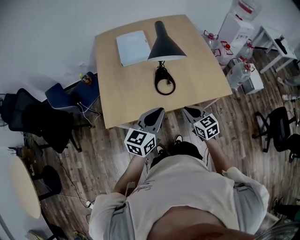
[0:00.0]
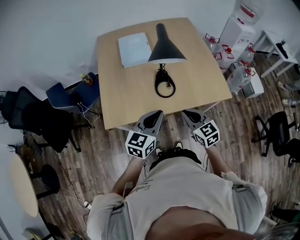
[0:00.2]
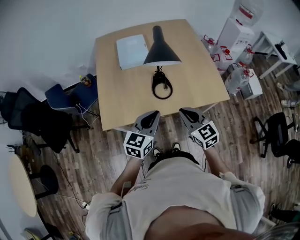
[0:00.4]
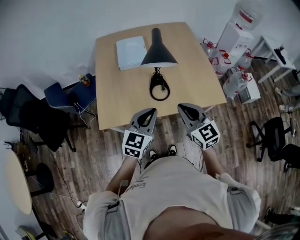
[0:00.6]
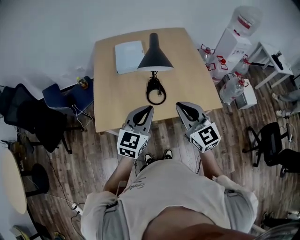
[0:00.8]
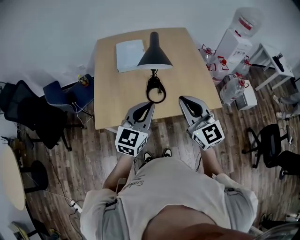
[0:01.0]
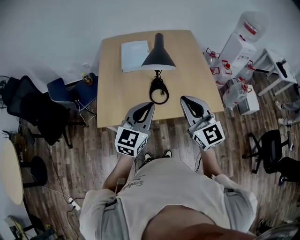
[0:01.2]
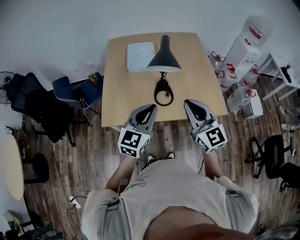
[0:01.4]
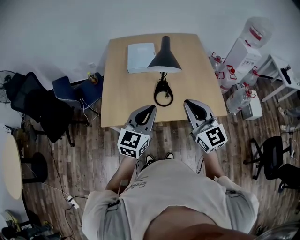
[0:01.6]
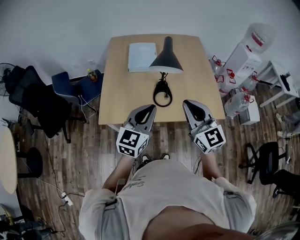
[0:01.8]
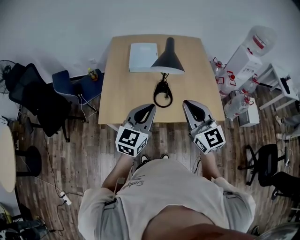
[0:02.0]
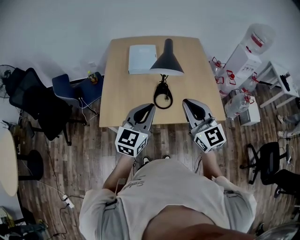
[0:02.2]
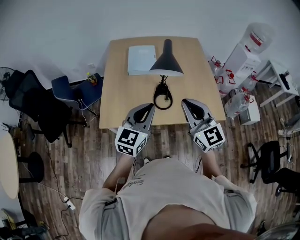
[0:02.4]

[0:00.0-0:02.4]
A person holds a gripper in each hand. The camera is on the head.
0:00.0 to 0:01.2: The right gripper goes approximately 25 cm upward, and points its fingers roughly 30 degrees further upward, while the left gripper shifts about 10 cm upward, and changes its angle by roughly 20 degrees.
0:01.2 to 0:02.4: There are only small adjustments of the grippers.

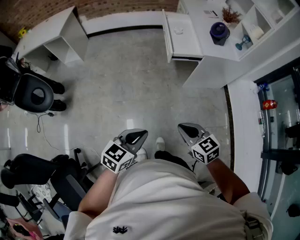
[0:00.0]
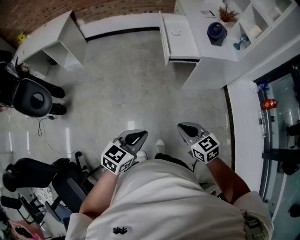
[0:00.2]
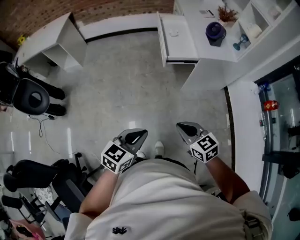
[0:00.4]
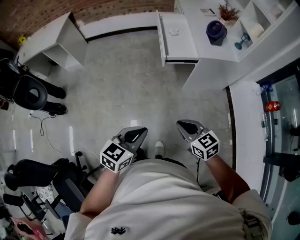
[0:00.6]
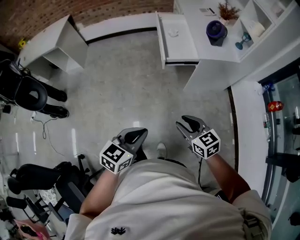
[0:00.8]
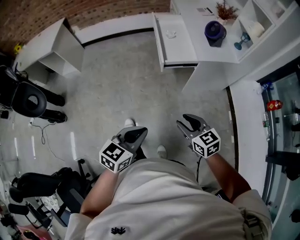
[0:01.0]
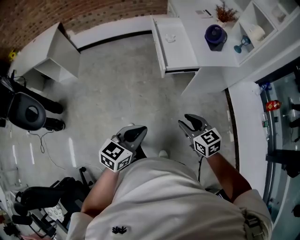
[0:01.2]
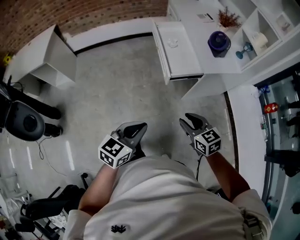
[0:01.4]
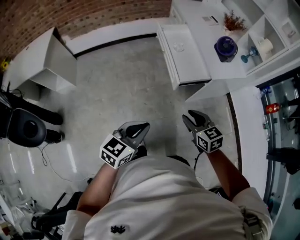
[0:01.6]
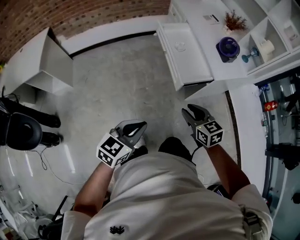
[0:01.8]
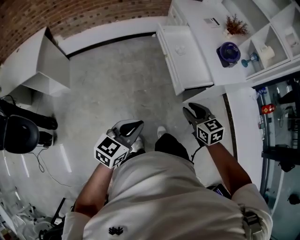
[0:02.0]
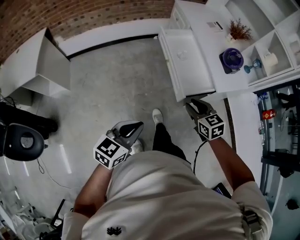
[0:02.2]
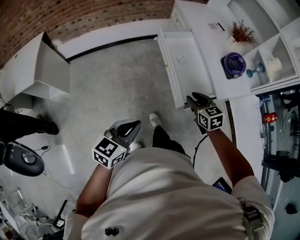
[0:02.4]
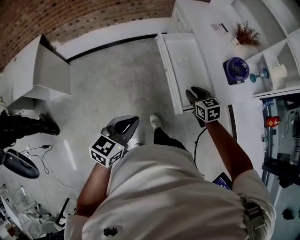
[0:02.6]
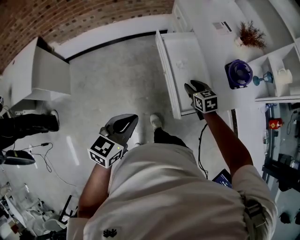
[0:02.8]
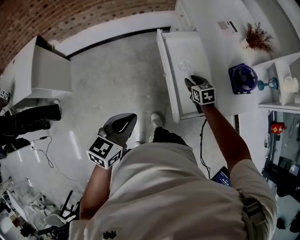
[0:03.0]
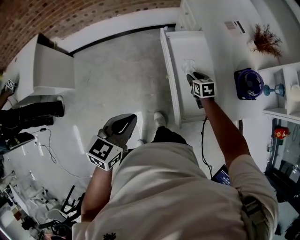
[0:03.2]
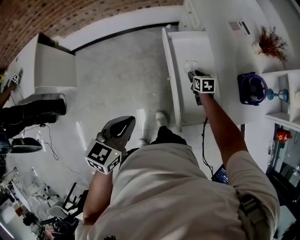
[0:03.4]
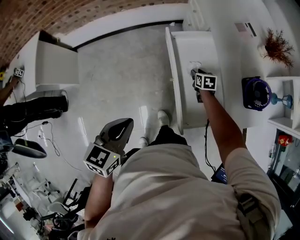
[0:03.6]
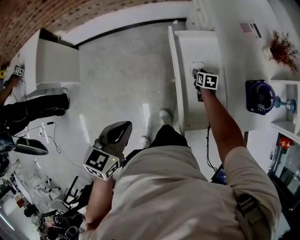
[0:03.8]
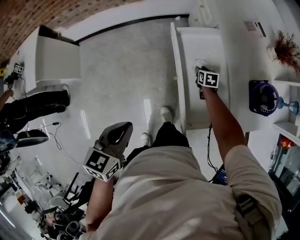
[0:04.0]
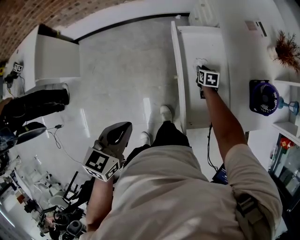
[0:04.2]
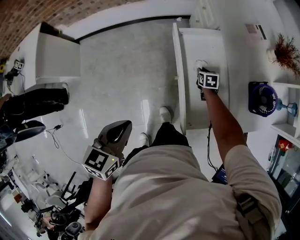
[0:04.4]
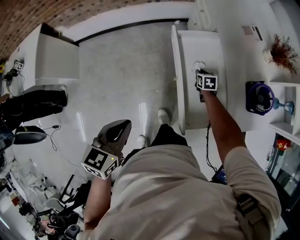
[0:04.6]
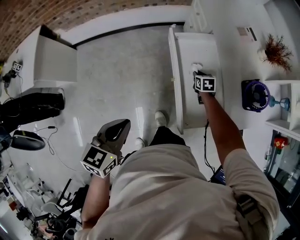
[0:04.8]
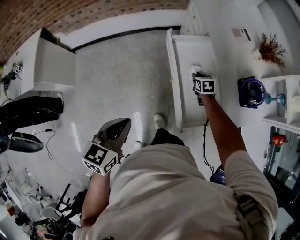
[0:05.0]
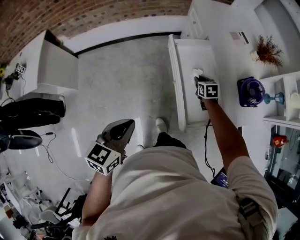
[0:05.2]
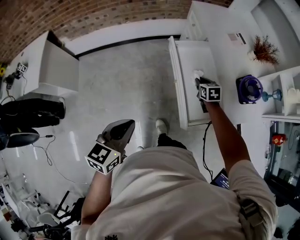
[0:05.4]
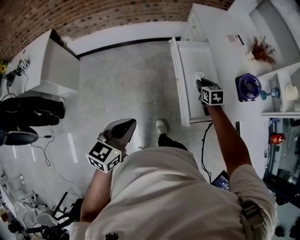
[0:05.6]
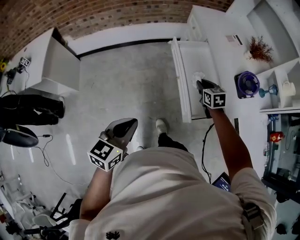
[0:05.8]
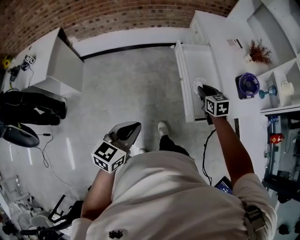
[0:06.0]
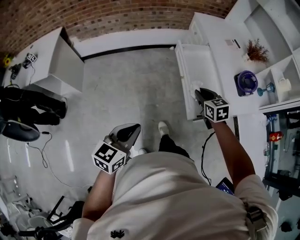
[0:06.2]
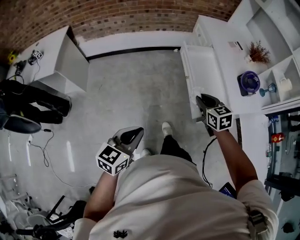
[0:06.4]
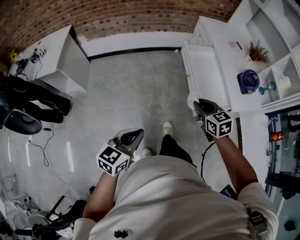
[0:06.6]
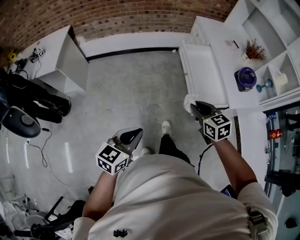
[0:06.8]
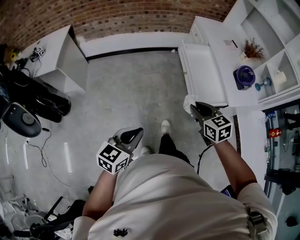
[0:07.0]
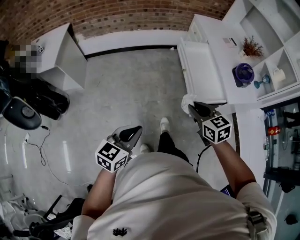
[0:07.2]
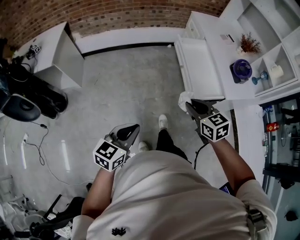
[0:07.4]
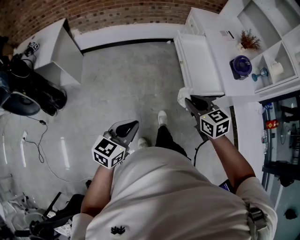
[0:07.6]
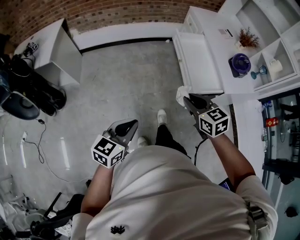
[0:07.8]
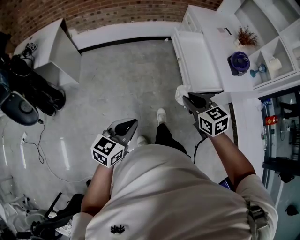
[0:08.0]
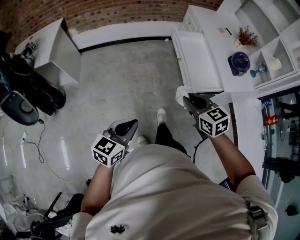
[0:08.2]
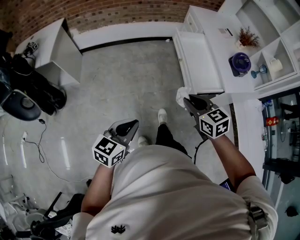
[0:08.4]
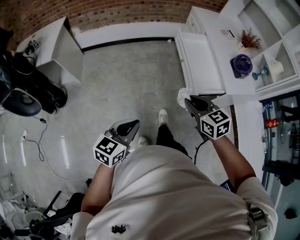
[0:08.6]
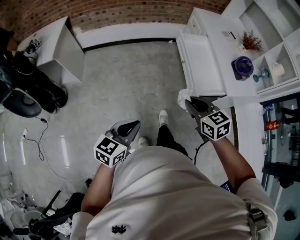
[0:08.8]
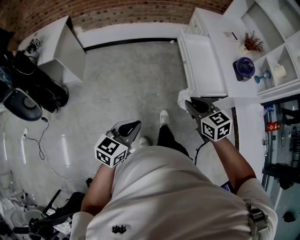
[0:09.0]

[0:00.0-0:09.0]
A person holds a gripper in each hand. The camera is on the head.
0:00.0 to 0:01.6: Both grippers move forward, approximately 30 cm. The right gripper opens up.
0:01.6 to 0:03.0: The two grippers go some 40 cm forward.
0:03.0 to 0:04.4: The right gripper moves downward and forward, roughly 20 cm; the left gripper ends up some 5 cm from where it was.
0:04.4 to 0:06.0: The right gripper shifts some 35 cm upward and backward, and rotates approximately 20 degrees, while the left gripper is displaced backward by about 20 cm.
0:06.0 to 0:07.6: The right gripper heads backward and to the left, covering about 30 cm. The left gripper is displaced backward by about 15 cm.
0:07.6 to 0:09.0: The grippers make only small movements.

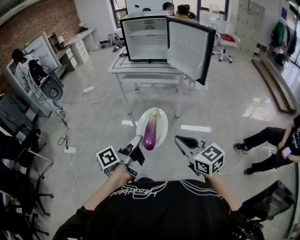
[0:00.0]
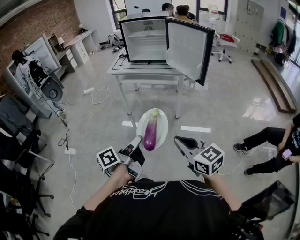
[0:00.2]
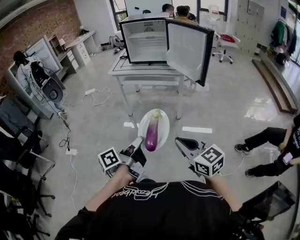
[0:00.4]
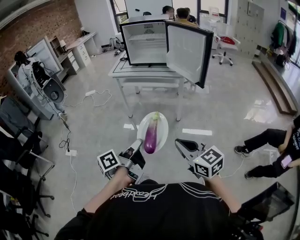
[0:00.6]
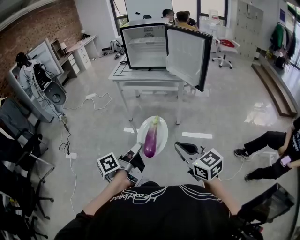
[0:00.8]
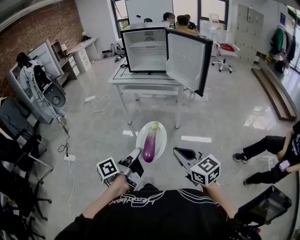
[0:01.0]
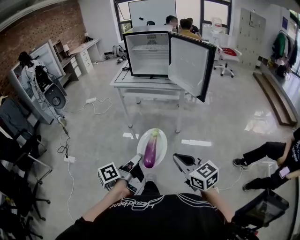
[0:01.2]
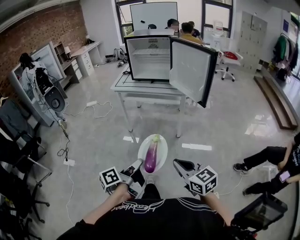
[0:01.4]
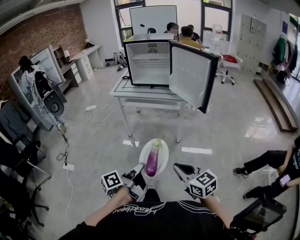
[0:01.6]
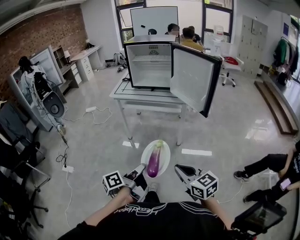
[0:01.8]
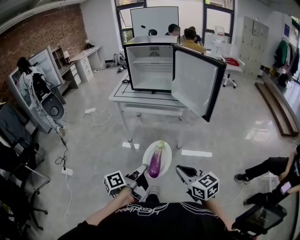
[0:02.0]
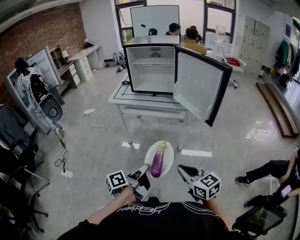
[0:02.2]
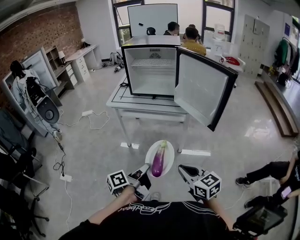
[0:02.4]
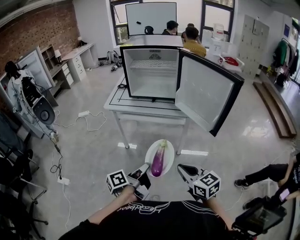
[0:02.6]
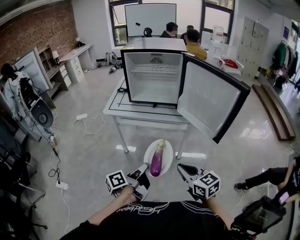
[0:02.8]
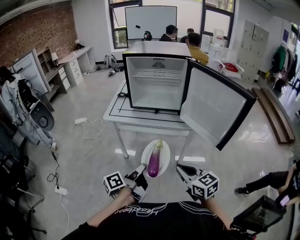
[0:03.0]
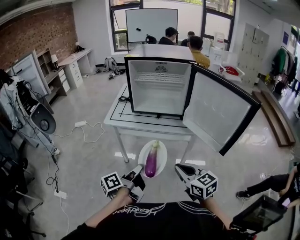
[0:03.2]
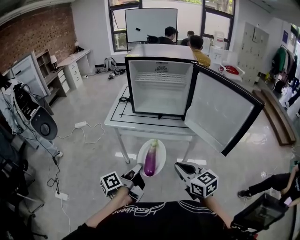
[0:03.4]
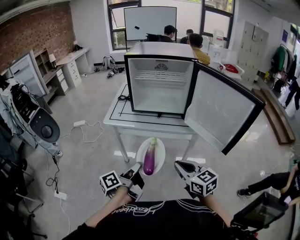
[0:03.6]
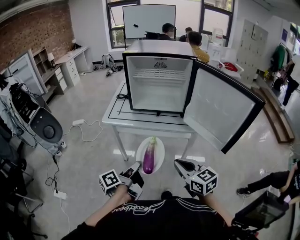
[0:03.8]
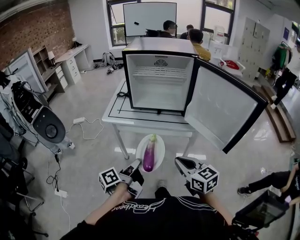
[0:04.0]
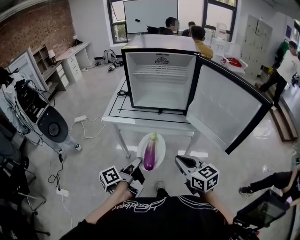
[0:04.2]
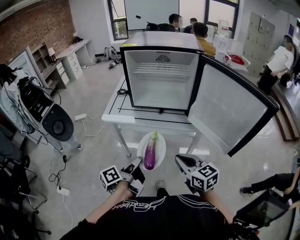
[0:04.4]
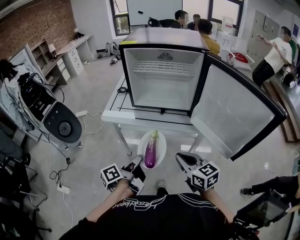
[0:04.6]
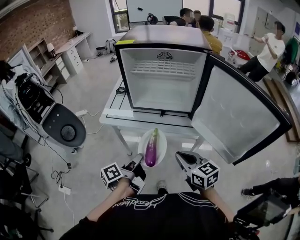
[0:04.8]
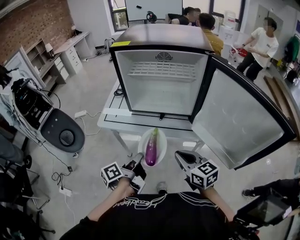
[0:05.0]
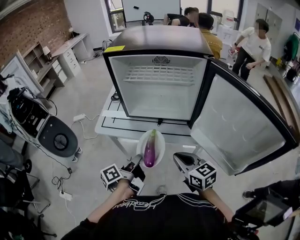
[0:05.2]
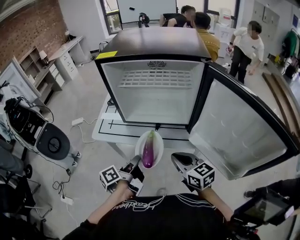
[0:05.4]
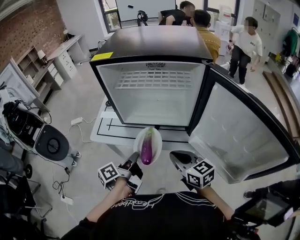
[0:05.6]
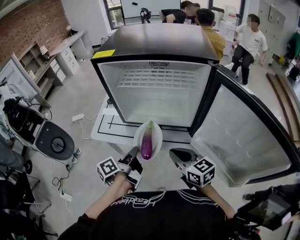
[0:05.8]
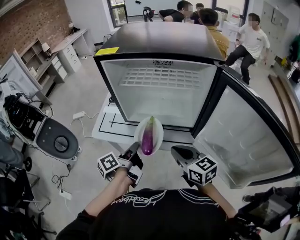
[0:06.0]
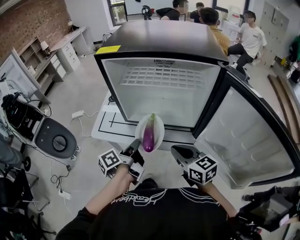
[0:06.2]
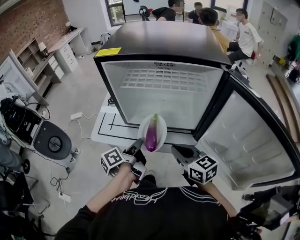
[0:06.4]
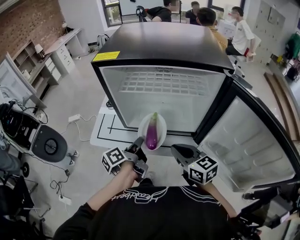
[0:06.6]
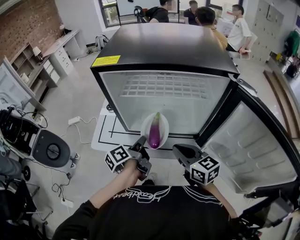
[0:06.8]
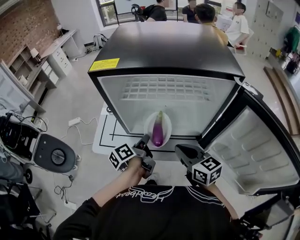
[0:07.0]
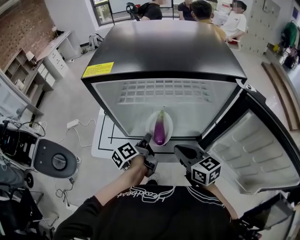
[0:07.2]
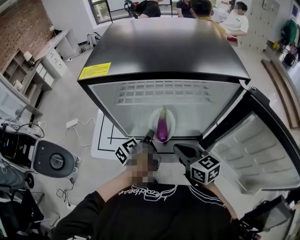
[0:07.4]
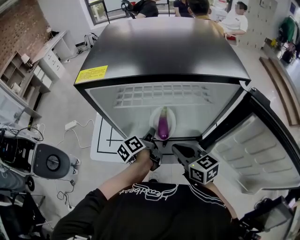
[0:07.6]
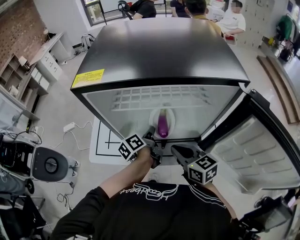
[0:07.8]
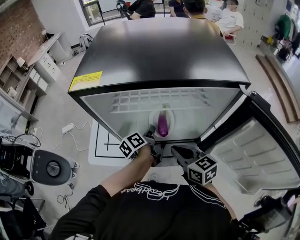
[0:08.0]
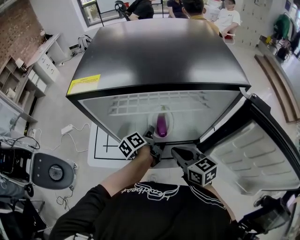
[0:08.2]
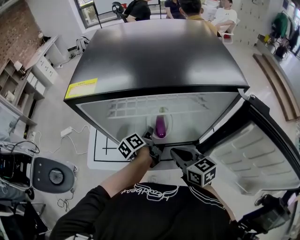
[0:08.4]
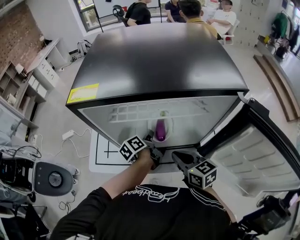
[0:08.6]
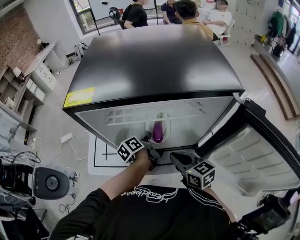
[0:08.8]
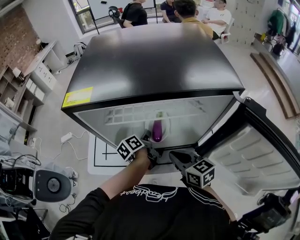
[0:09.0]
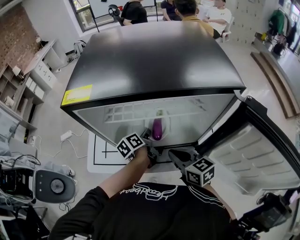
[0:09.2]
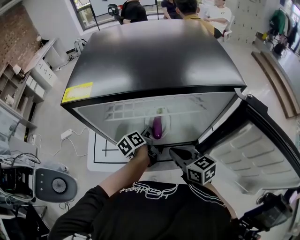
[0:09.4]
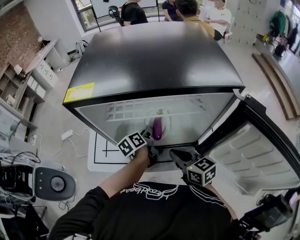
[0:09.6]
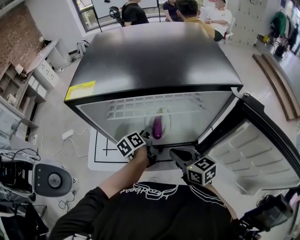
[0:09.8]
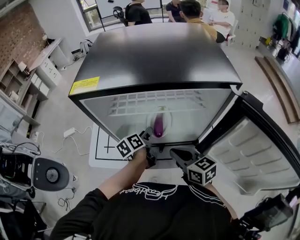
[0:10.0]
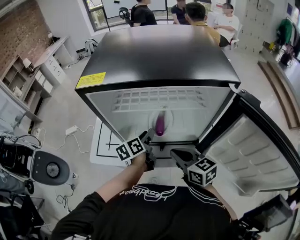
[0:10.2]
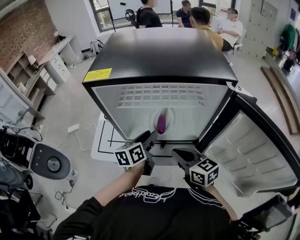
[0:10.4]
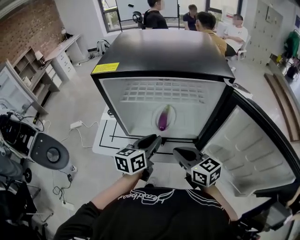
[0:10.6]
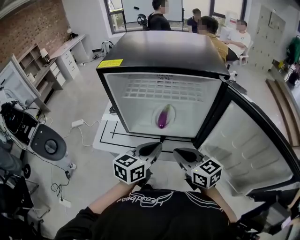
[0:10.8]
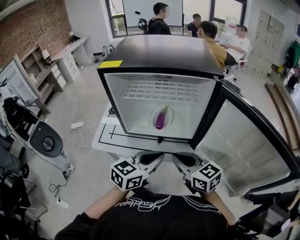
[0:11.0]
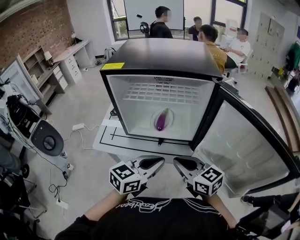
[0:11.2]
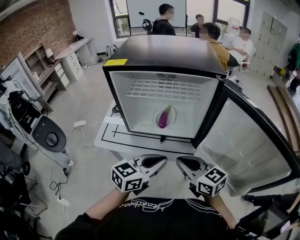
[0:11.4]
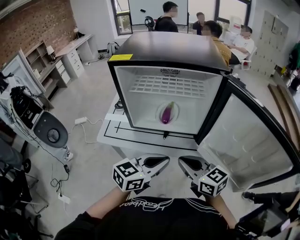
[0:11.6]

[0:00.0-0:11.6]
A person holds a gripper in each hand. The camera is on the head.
0:00.0 to 0:01.4: The grippers stay close to where they were, moving slightly.
0:01.4 to 0:02.8: Both grippers move forward, about 30 cm.
0:02.8 to 0:04.4: The two grippers go approximately 15 cm forward.
0:04.4 to 0:05.8: Both grippers travel together forward, approximately 25 cm.
0:05.8 to 0:07.2: The right gripper is displaced forward by about 10 cm; the left gripper travels forward by some 15 cm.
0:07.2 to 0:08.8: The left gripper heads forward, covering approximately 10 cm.
0:08.8 to 0:10.2: The left gripper shifts about 5 cm upward, and opens up.
0:10.2 to 0:11.6: The left gripper shifts some 30 cm backward and upward, rolls clockwise, seen from behind, by roughly 40 degrees, and closes, while the right gripper travels backward by some 15 cm.

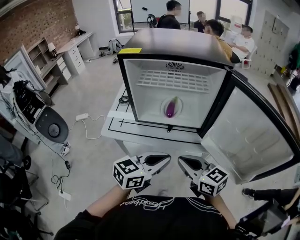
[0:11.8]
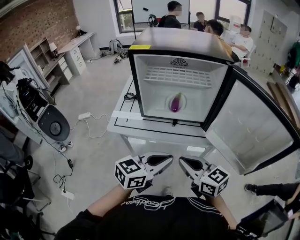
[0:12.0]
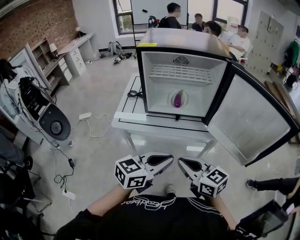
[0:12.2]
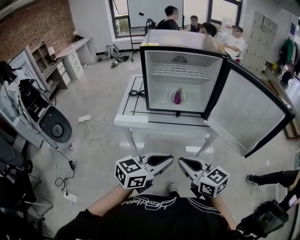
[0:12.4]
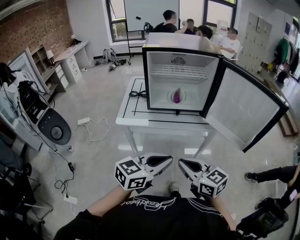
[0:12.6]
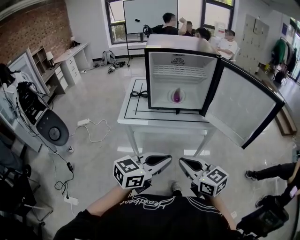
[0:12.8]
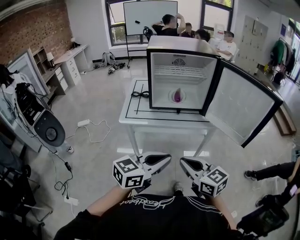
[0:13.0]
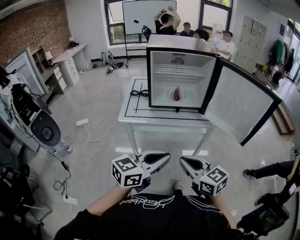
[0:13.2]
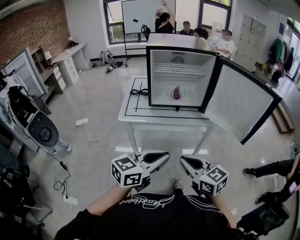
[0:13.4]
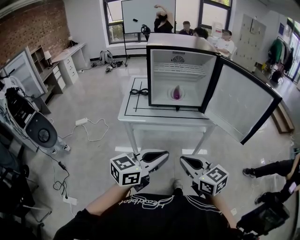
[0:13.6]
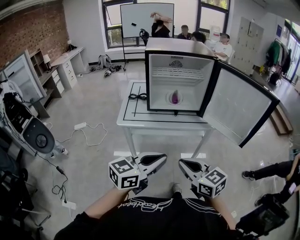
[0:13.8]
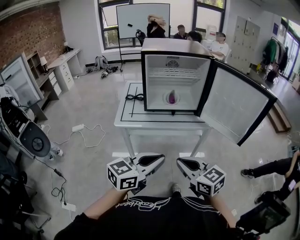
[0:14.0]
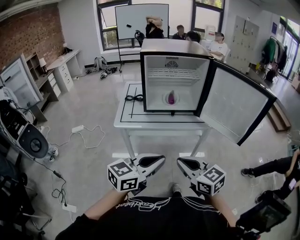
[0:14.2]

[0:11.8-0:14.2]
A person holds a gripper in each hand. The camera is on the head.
0:11.8 to 0:13.0: Both grippers travel together backward, some 25 cm.
0:13.0 to 0:14.2: The grippers stay close to where they were, moving slightly.
